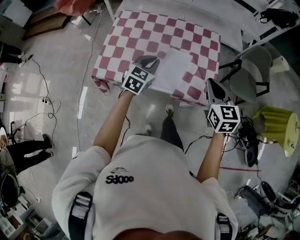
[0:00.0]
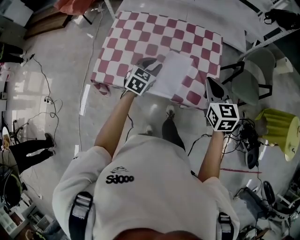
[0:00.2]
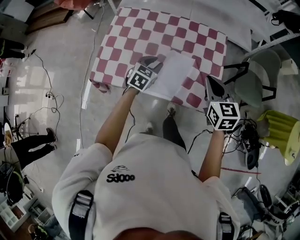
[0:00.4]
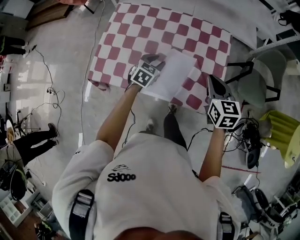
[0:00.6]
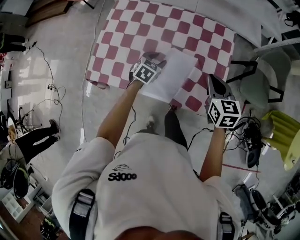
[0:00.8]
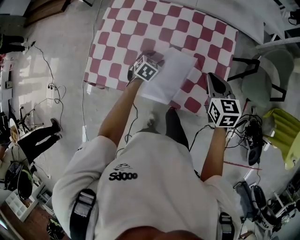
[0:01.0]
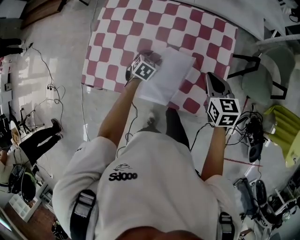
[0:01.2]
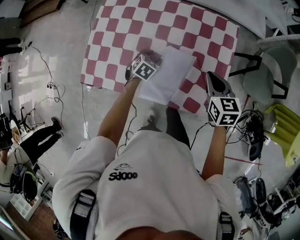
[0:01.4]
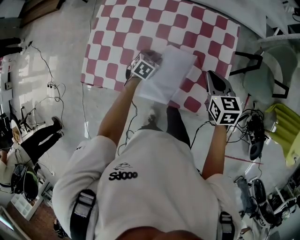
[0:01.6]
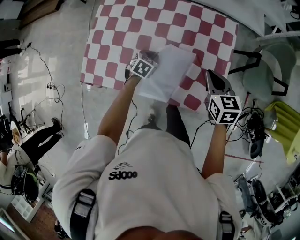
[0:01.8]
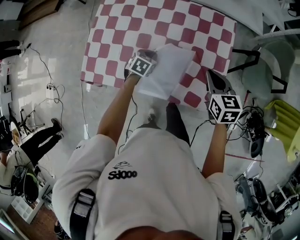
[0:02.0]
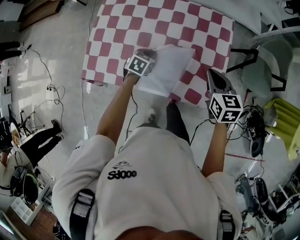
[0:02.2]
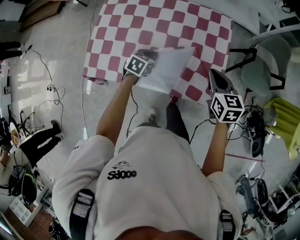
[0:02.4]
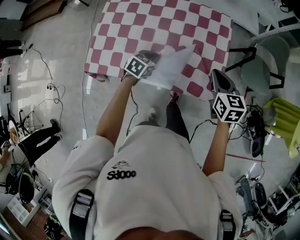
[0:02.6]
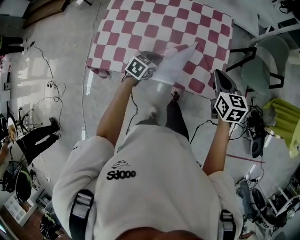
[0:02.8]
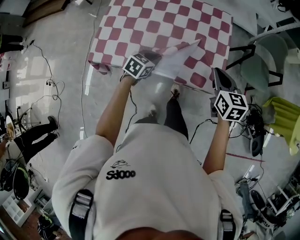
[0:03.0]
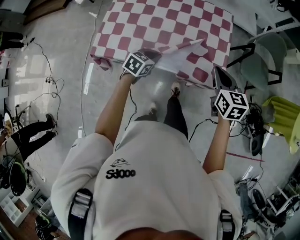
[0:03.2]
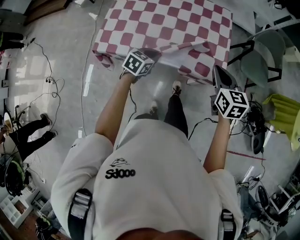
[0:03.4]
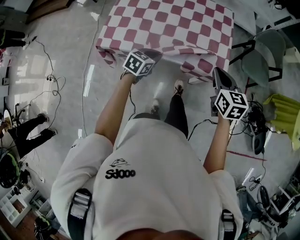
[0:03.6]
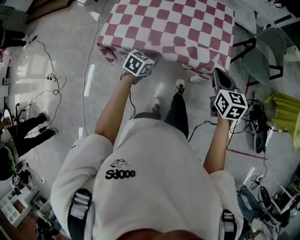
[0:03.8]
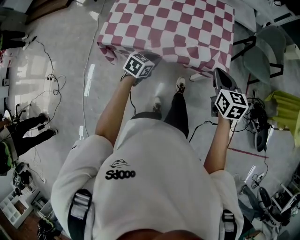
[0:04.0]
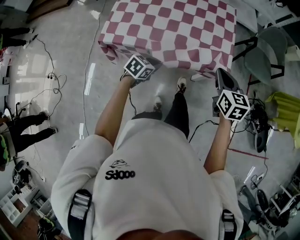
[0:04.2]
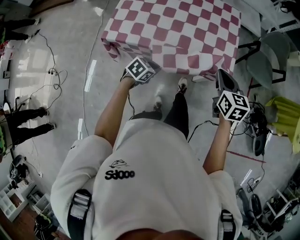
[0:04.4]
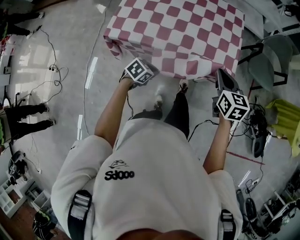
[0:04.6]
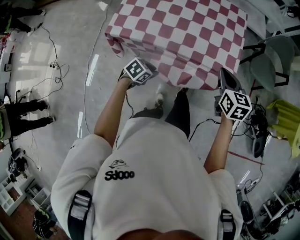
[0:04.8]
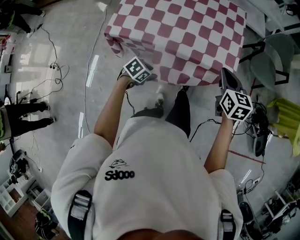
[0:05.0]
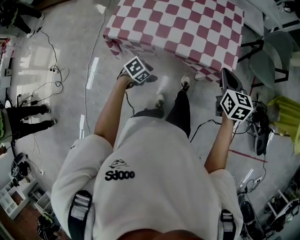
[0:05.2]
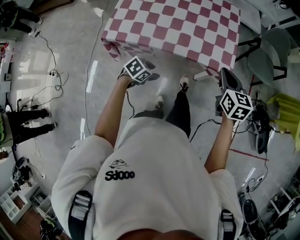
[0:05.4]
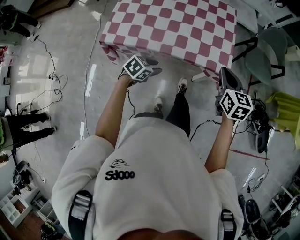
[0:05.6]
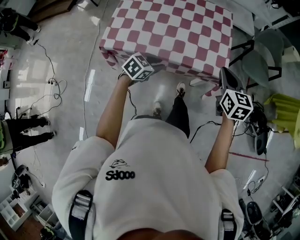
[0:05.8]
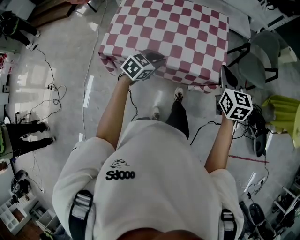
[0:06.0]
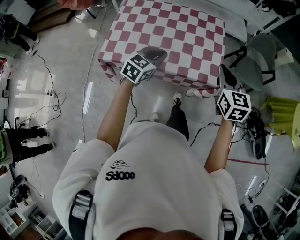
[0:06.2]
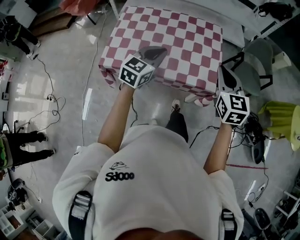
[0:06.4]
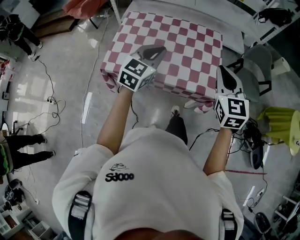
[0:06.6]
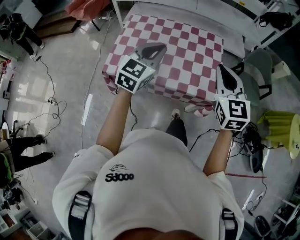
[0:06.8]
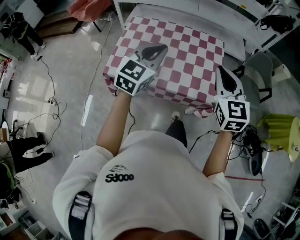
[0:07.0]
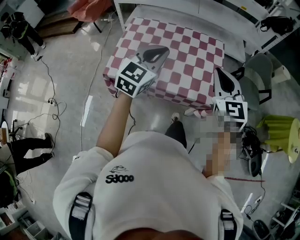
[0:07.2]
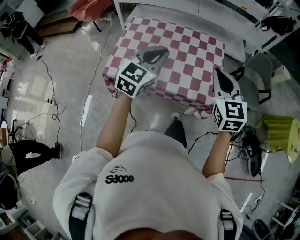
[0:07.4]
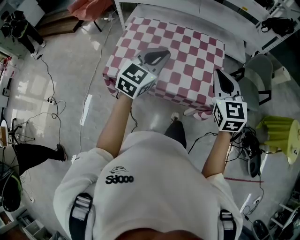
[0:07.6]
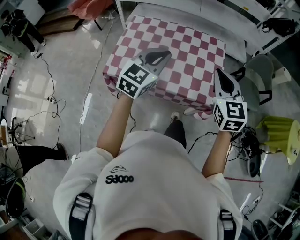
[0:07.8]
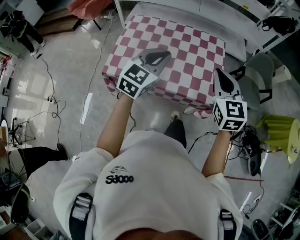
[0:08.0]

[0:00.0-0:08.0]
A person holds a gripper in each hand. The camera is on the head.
0:00.0 to 0:01.6: The left gripper heads downward and forward, covering roughly 30 cm, turns by some 30 degrees, and opens, while the right gripper moves forward and downward, some 25 cm.
0:01.6 to 0:03.2: The left gripper moves backward and upward, roughly 20 cm, and closes. Meanwhile the right gripper moves backward, about 20 cm.
0:03.2 to 0:04.8: The left gripper moves backward and downward, some 20 cm. Meanwhile the right gripper travels backward by some 10 cm.
0:04.8 to 0:06.4: The left gripper moves upward and forward, roughly 30 cm, tilts its fingers roughly 40 degrees upward, and opens, then closes once more. Meanwhile the right gripper heads upward, covering roughly 15 cm, and rotates approximately 20 degrees.
0:06.4 to 0:08.0: The left gripper is displaced upward by some 5 cm, while the right gripper shifts by some 5 cm.

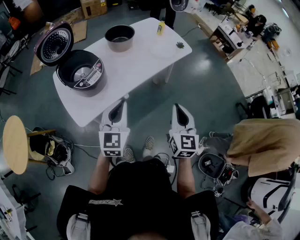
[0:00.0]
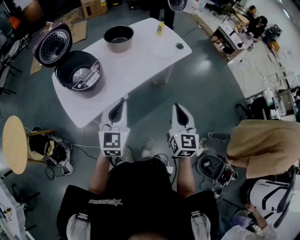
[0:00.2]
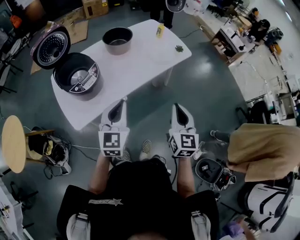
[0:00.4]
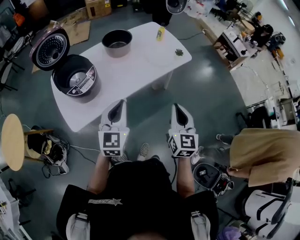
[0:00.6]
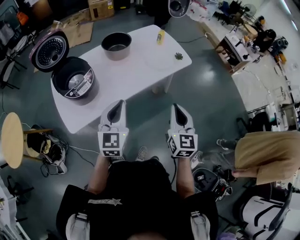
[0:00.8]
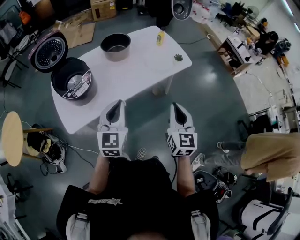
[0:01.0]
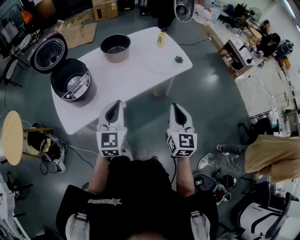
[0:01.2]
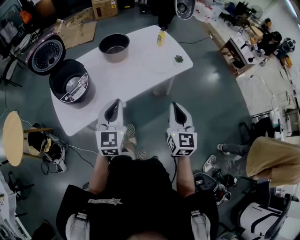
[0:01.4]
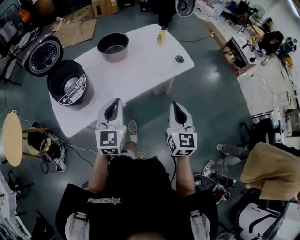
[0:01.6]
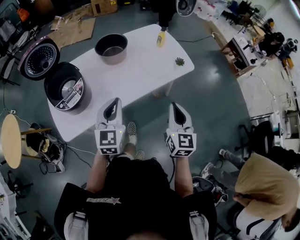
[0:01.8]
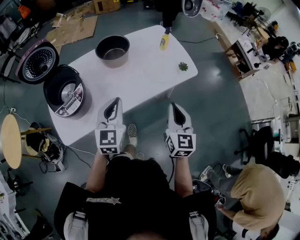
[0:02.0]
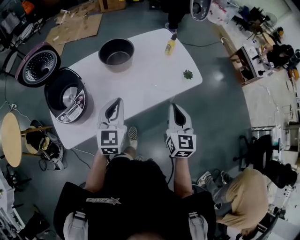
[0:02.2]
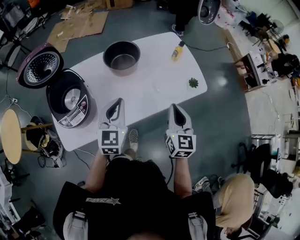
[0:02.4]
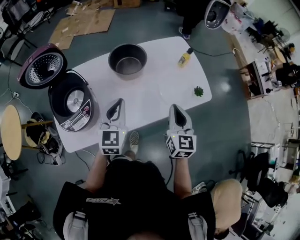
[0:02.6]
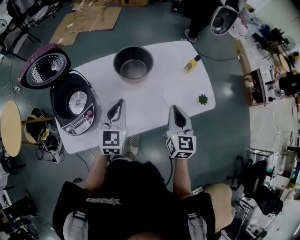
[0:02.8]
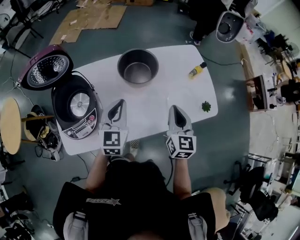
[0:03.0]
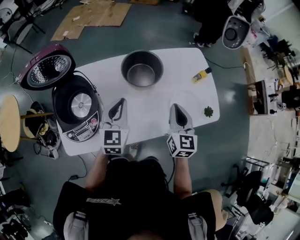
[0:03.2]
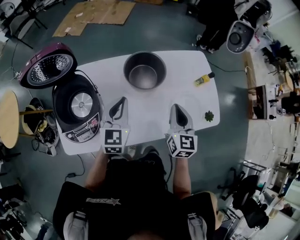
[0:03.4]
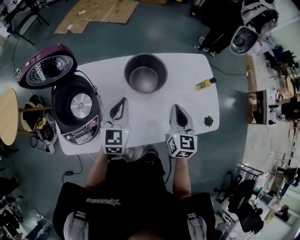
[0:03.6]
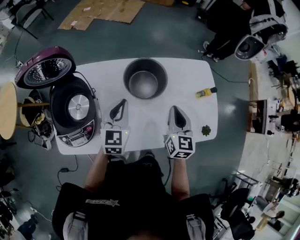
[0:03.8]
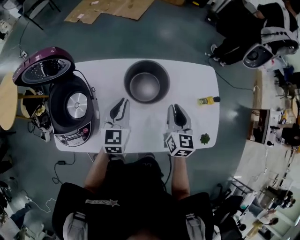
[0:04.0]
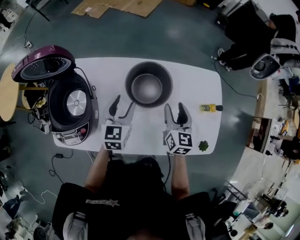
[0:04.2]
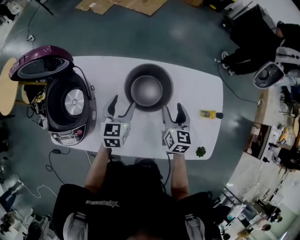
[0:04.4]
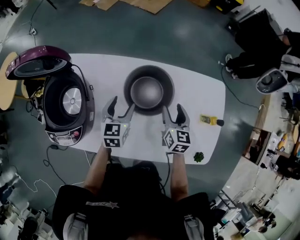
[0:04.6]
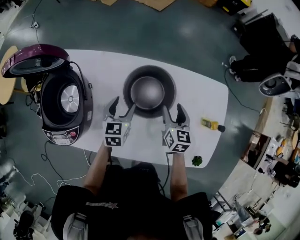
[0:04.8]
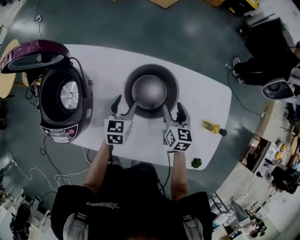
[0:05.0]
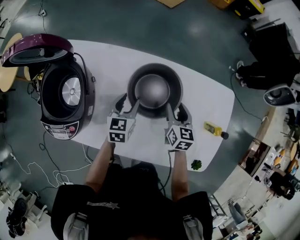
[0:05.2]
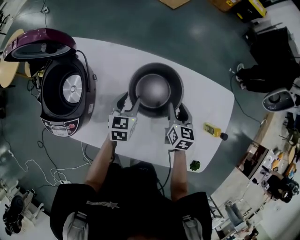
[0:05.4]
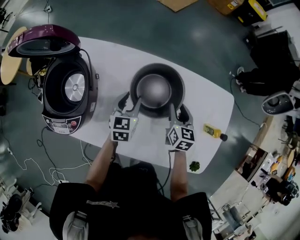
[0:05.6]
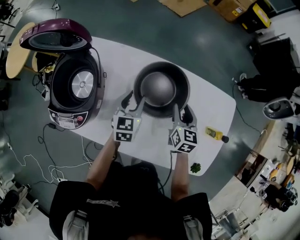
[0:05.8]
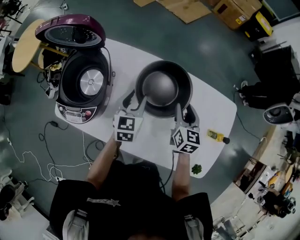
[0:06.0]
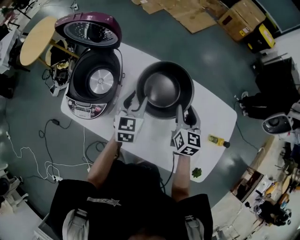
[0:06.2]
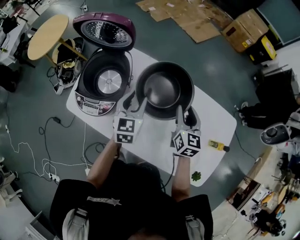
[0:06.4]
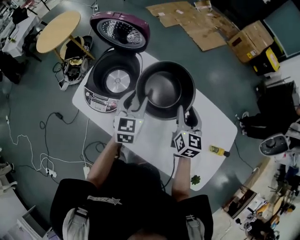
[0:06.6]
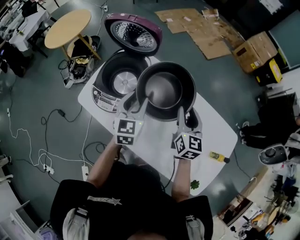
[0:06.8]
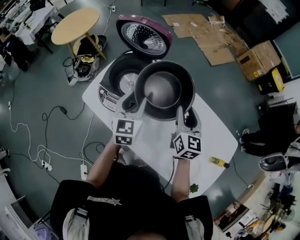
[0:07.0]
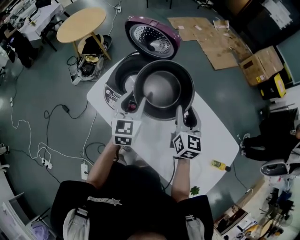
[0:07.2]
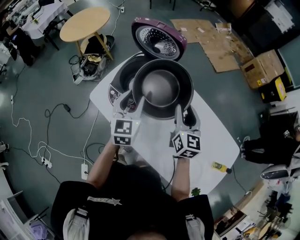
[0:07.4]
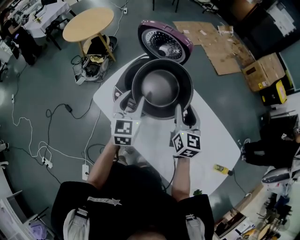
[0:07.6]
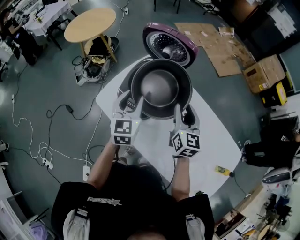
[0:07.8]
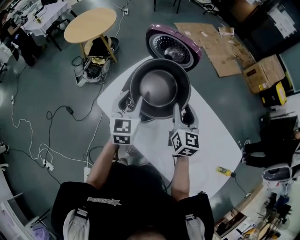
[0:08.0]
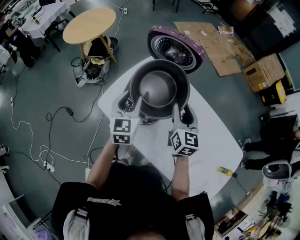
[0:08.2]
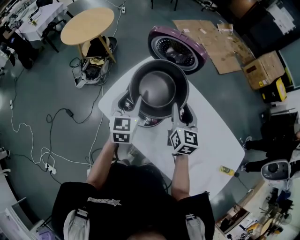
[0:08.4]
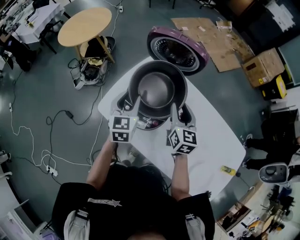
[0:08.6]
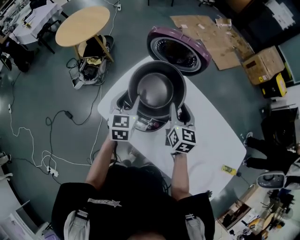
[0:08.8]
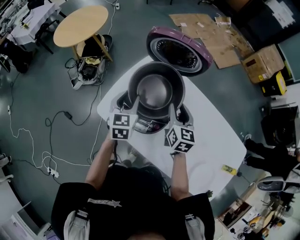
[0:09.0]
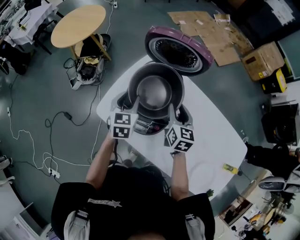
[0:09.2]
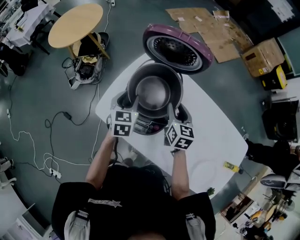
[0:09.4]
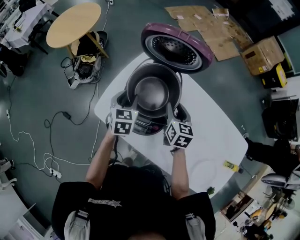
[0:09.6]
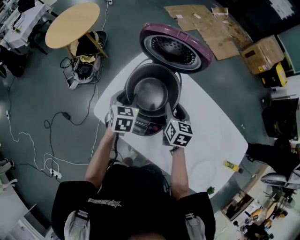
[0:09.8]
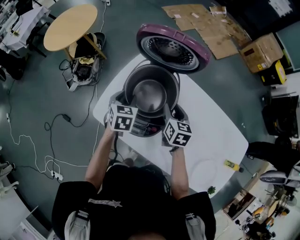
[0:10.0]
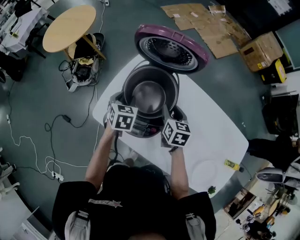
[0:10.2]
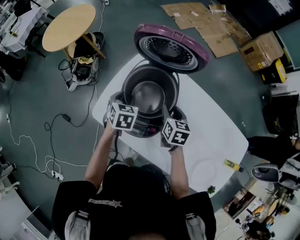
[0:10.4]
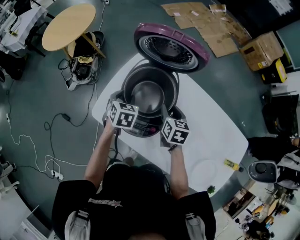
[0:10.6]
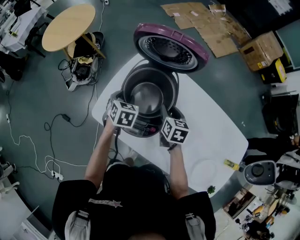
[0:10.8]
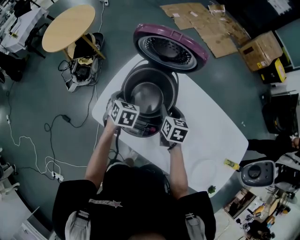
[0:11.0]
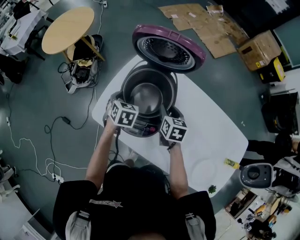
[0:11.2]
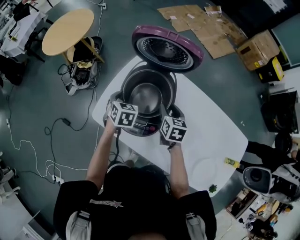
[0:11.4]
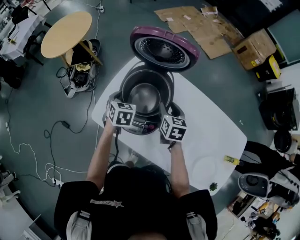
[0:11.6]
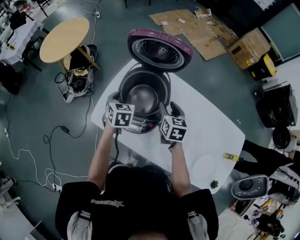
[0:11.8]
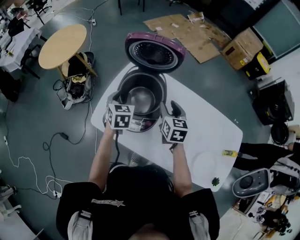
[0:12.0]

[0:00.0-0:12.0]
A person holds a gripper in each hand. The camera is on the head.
0:00.0 to 0:01.6: Both grippers move forward and to the right, about 20 cm.
0:01.6 to 0:03.0: The two grippers go roughly 30 cm forward.
0:03.0 to 0:04.4: The two grippers go approximately 20 cm forward and downward. The right gripper changes its angle by roughly 20 degrees, and opens its fingers, while the left gripper turns by about 30 degrees, and opens.
0:04.4 to 0:06.0: The left gripper travels downward and back again, some 10 cm each way, while the right gripper goes downward and returns, roughly 10 cm each way, and closes.
0:06.0 to 0:07.6: Both grippers travel together to the left and upward, approximately 30 cm. The left gripper rotates roughly 30 degrees. The right gripper turns by roughly 30 degrees.
0:07.6 to 0:09.0: The two grippers go some 15 cm to the left, forward and downward.
0:09.0 to 0:10.4: Both grippers move downward, some 5 cm. The left gripper changes its angle by roughly 20 degrees.
0:10.4 to 0:12.0: The grippers both shift upward by approximately 5 cm.

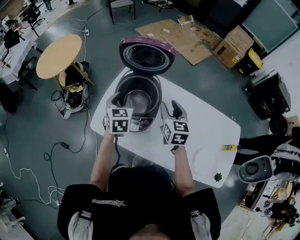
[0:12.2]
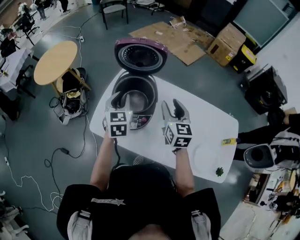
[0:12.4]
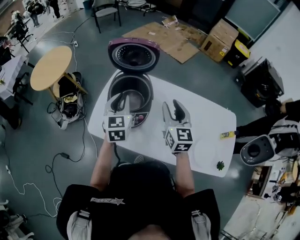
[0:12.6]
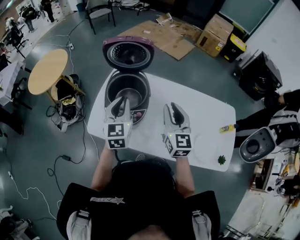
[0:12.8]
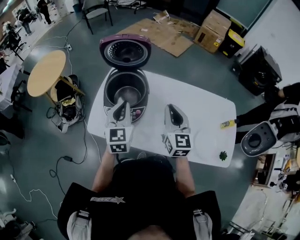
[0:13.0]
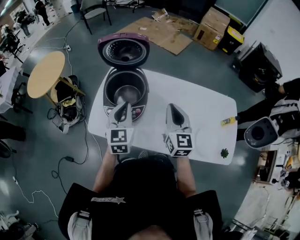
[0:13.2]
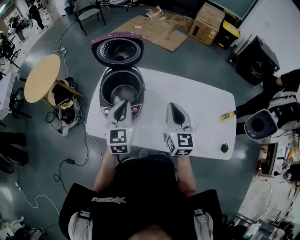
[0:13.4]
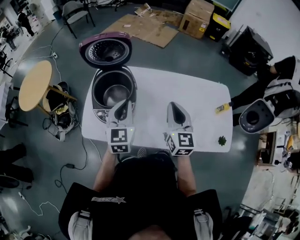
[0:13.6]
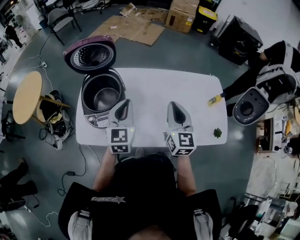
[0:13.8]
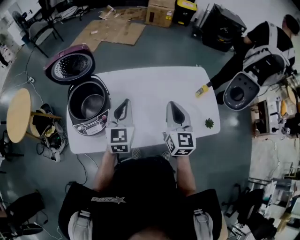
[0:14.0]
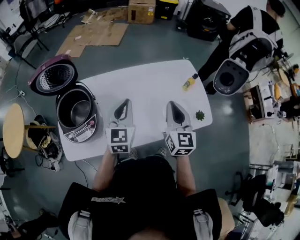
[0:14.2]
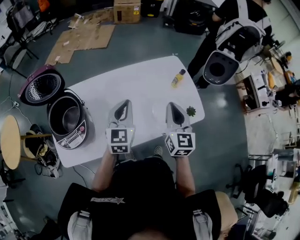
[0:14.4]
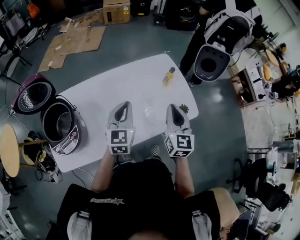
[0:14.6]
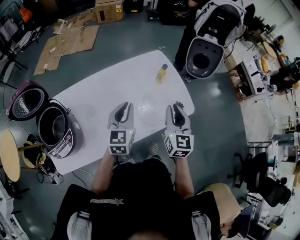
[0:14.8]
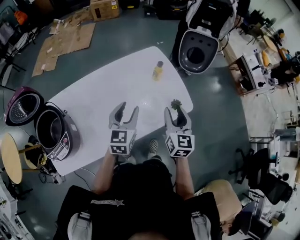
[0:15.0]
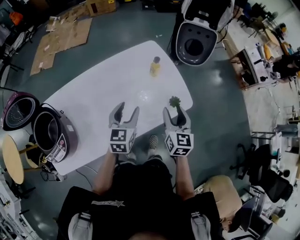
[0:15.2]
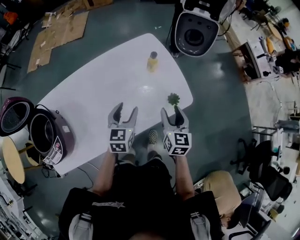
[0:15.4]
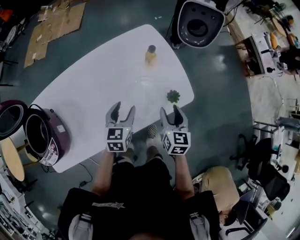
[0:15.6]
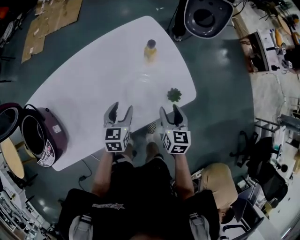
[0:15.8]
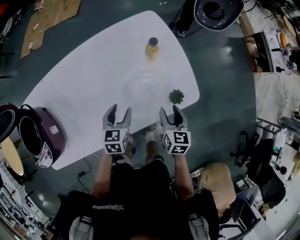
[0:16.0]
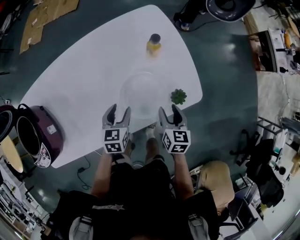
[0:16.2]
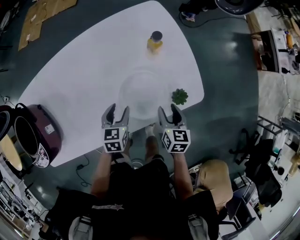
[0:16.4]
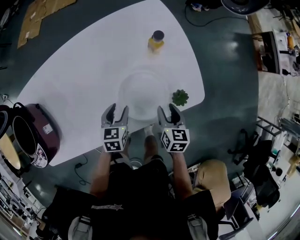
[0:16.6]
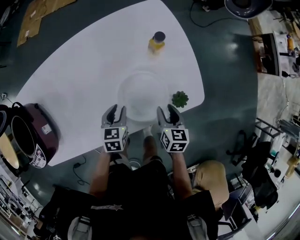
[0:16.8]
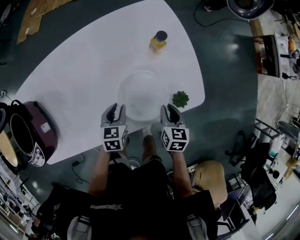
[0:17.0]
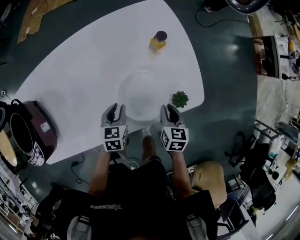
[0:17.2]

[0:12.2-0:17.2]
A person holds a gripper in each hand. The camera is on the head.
0:12.2 to 0:13.8: The left gripper moves approximately 25 cm, swivels approximately 30 degrees, and closes. Meanwhile the right gripper shifts by about 25 cm, turns by some 30 degrees, and closes up.
0:13.8 to 0:15.6: The left gripper ends up approximately 40 cm from where it was, rotates roughly 40 degrees, and opens its fingers. The right gripper shifts by roughly 40 cm, changes its angle by about 40 degrees, and opens its fingers.
0:15.6 to 0:17.2: The grippers both shift downward by about 15 cm. The left gripper closes up. Meanwhile the right gripper closes up.
